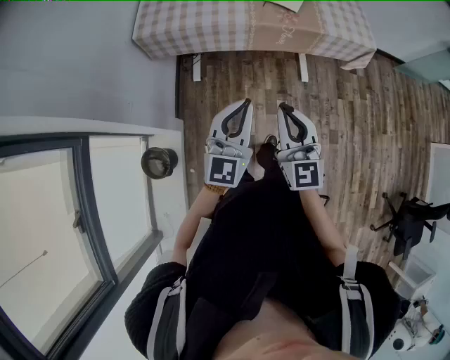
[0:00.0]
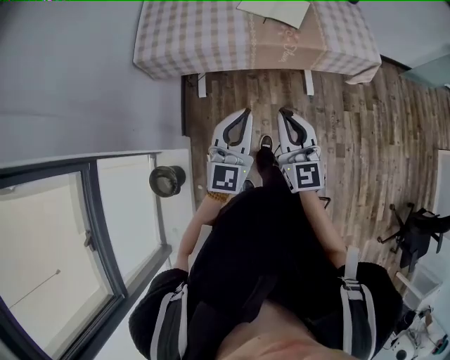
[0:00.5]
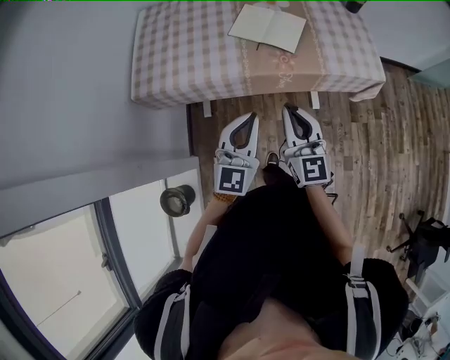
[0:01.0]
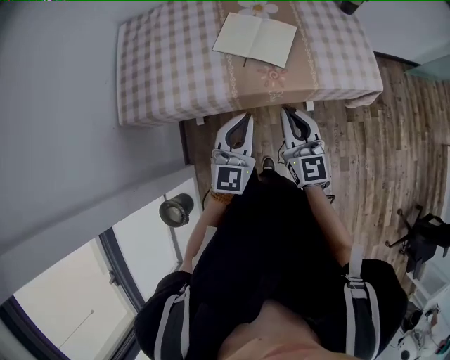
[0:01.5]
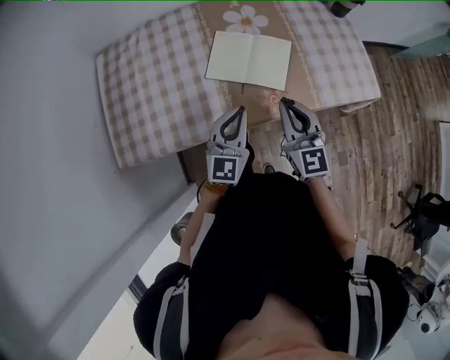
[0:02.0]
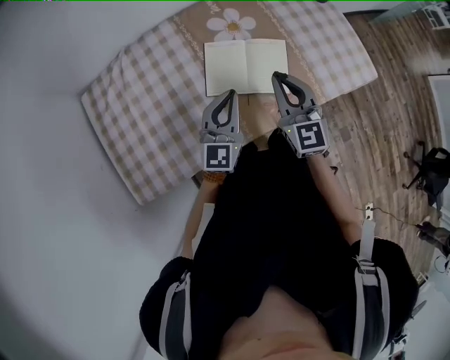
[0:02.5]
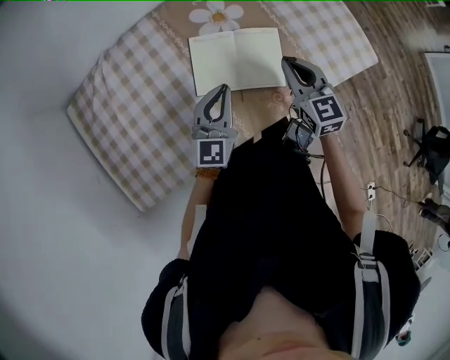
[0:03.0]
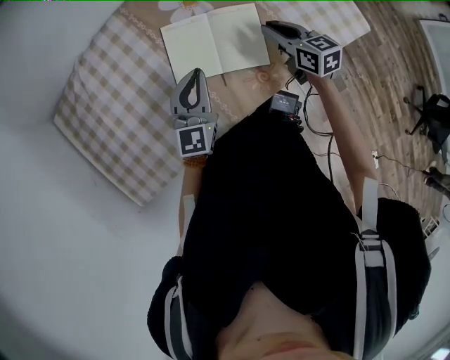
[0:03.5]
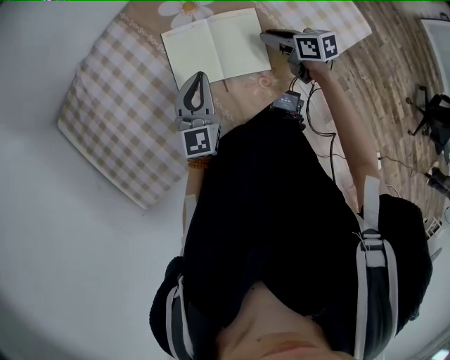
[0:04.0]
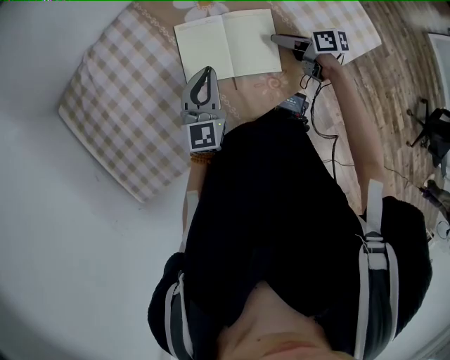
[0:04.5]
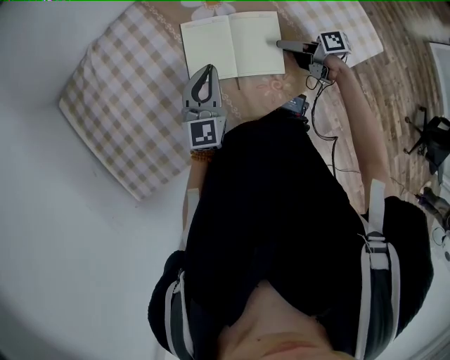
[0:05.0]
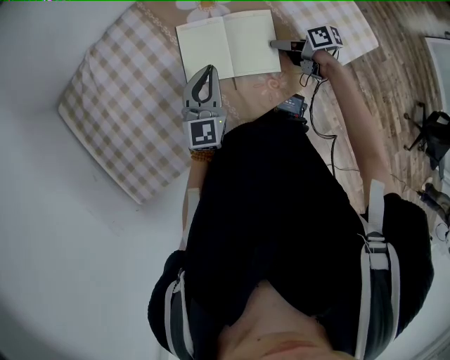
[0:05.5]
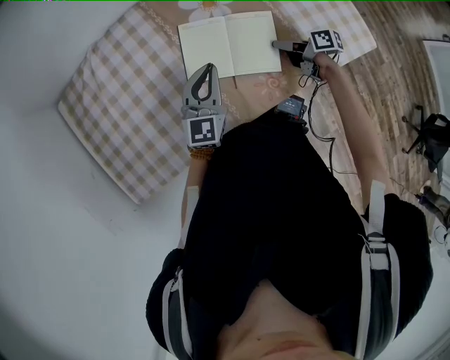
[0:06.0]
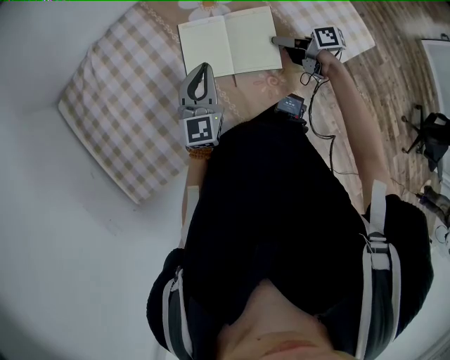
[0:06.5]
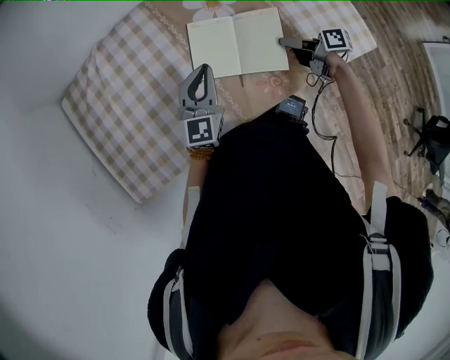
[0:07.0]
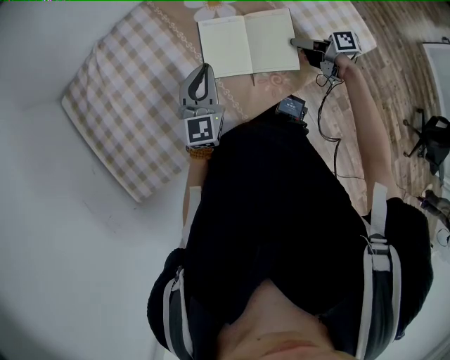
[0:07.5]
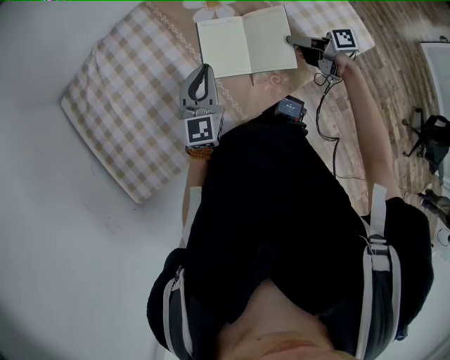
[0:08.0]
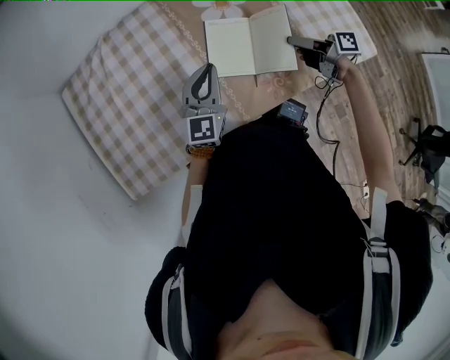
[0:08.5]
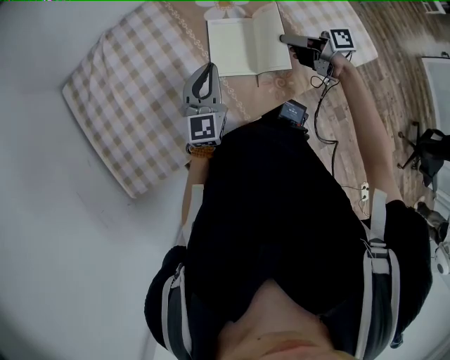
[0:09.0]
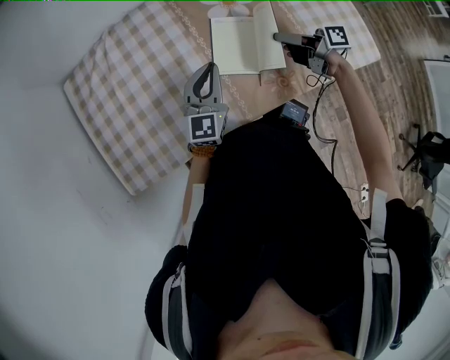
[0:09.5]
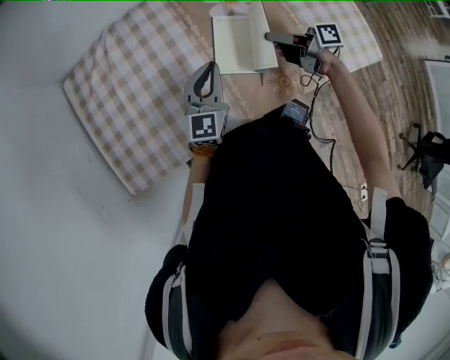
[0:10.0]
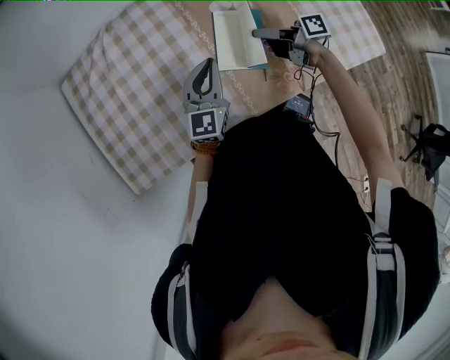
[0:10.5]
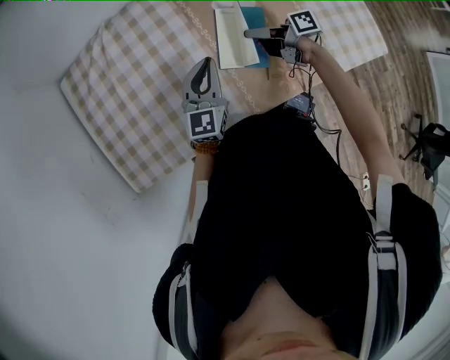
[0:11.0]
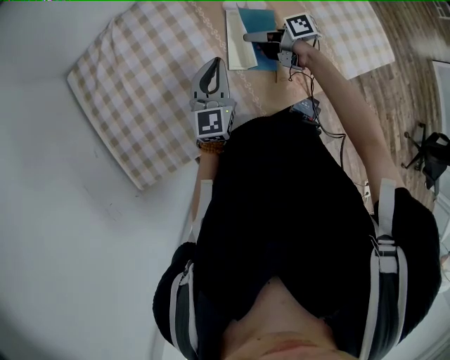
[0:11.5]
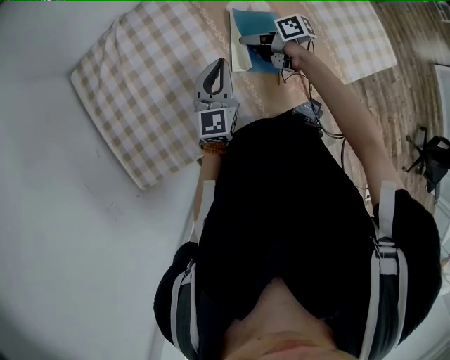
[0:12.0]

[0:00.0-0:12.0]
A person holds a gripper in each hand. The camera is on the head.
0:00.0 to 0:02.0: The pair of grippers is taken forward, about 50 cm.
0:02.0 to 0:04.0: The right gripper heads downward and forward, covering about 25 cm, rotates around the line of its fingers by about 40 degrees, clockwise from behind, and opens up, while the left gripper goes approximately 20 cm forward and downward.
0:04.0 to 0:06.0: The right gripper rotates about 30 degrees, and closes its fingers.
0:06.0 to 0:08.0: The right gripper heads upward, covering some 5 cm.
0:08.0 to 0:10.0: The right gripper is displaced to the left and forward by about 10 cm.
0:10.0 to 0:12.0: The right gripper is displaced to the left, downward and forward by some 15 cm.

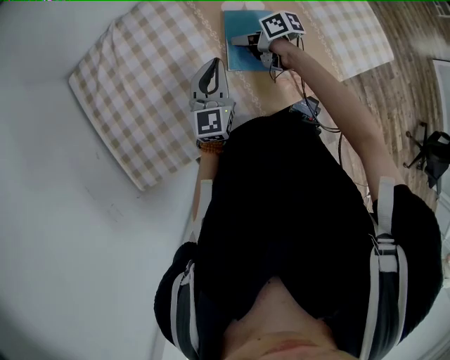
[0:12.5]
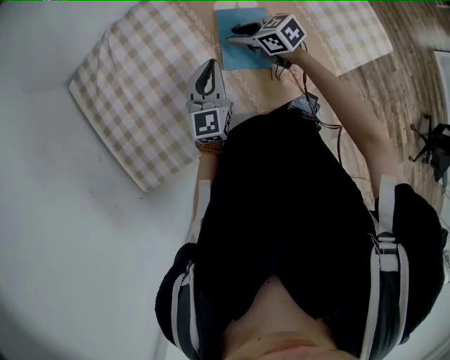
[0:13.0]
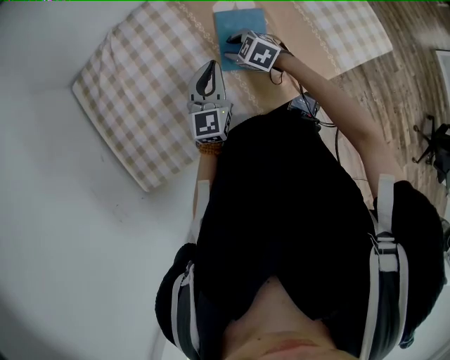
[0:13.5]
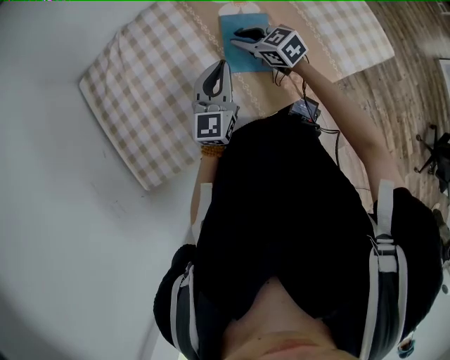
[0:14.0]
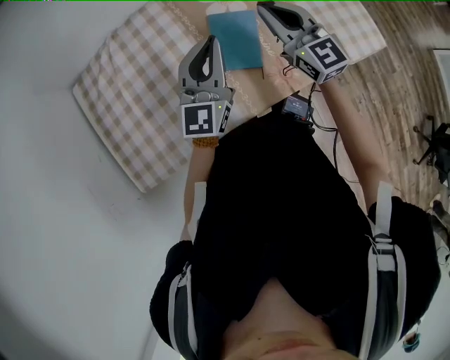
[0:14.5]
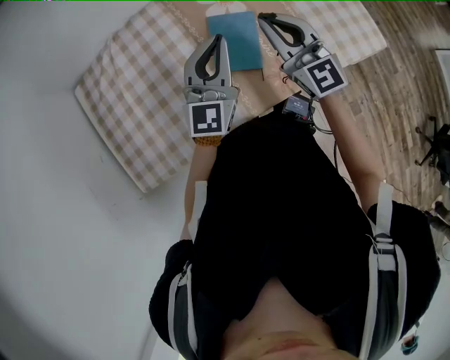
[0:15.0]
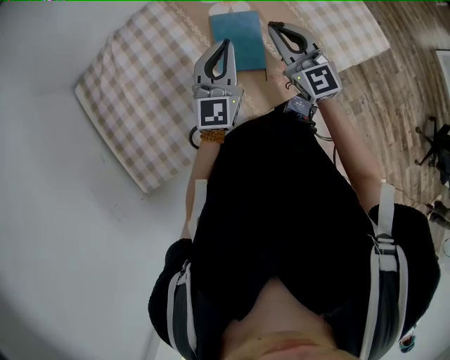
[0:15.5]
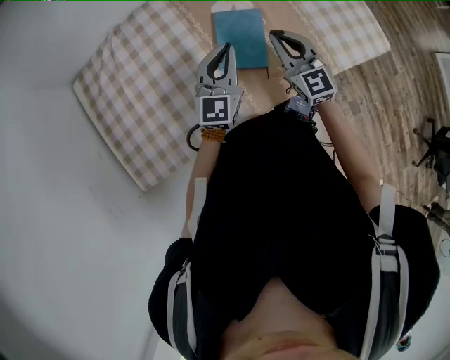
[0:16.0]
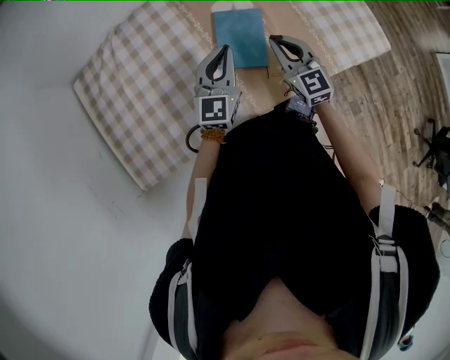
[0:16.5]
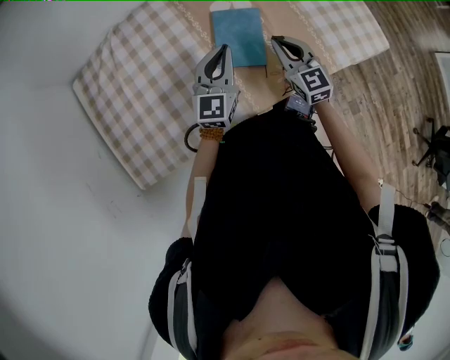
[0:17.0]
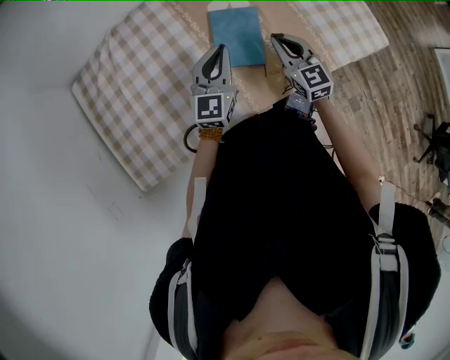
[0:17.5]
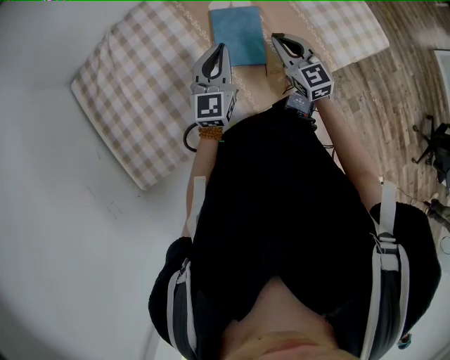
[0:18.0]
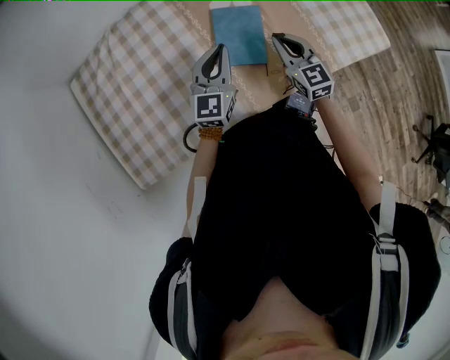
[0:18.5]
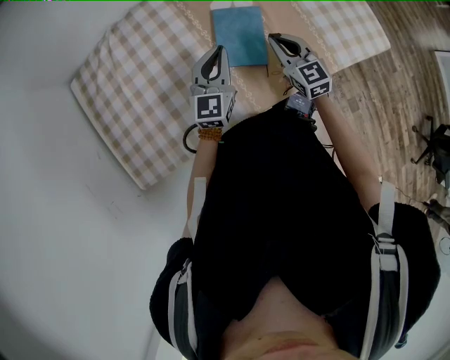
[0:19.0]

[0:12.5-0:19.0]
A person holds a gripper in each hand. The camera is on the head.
0:12.5 to 0:14.5: The left gripper travels upward and to the right by about 15 cm. The right gripper shifts approximately 25 cm upward and to the right, and changes its angle by approximately 80 degrees.
0:14.5 to 0:17.0: Both grippers move downward, about 15 cm.
0:17.0 to 0:19.0: The grippers stay close to where they were, moving slightly.

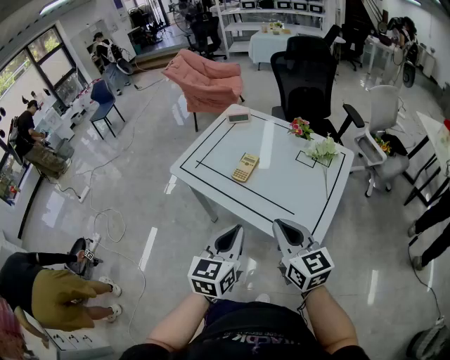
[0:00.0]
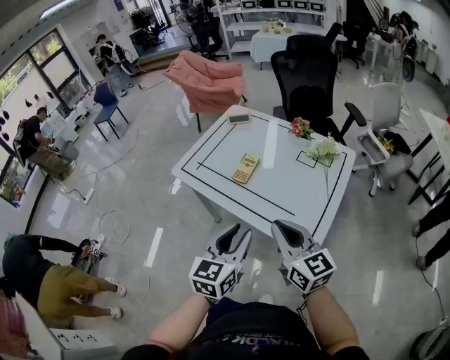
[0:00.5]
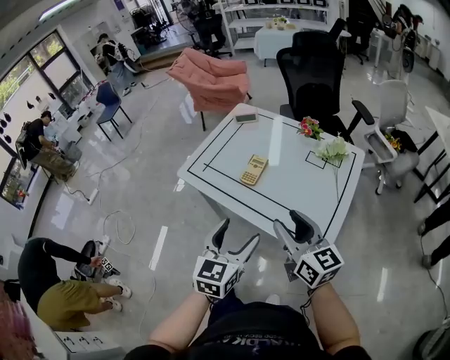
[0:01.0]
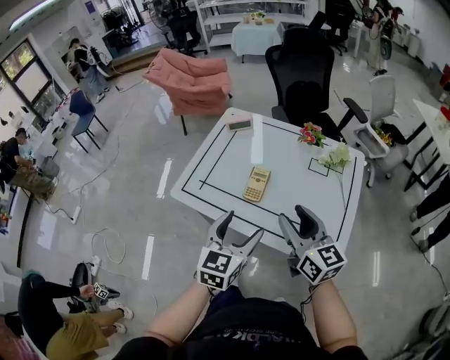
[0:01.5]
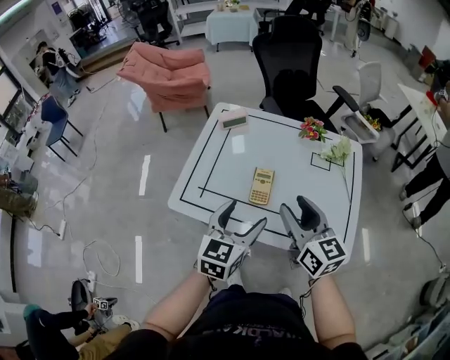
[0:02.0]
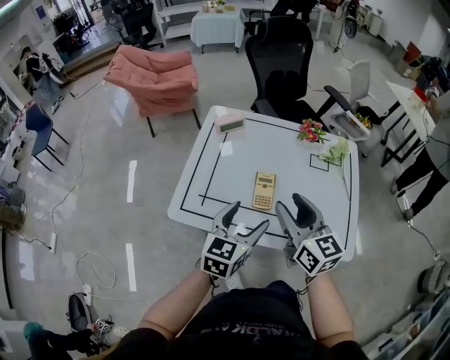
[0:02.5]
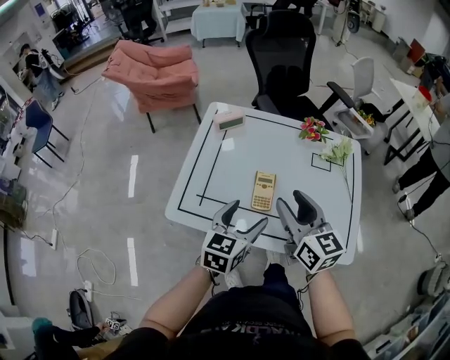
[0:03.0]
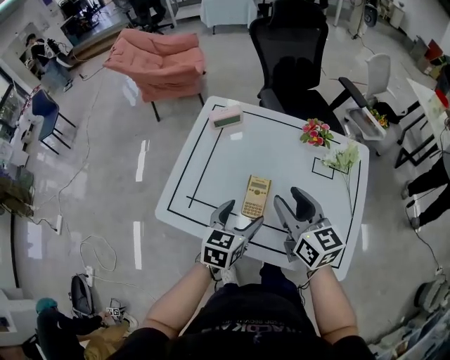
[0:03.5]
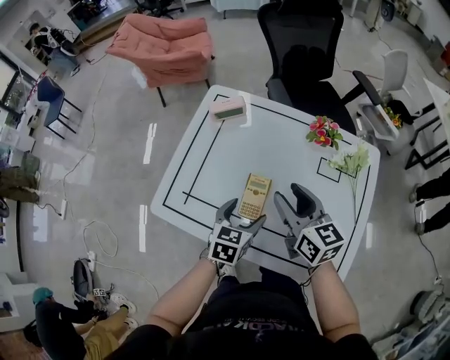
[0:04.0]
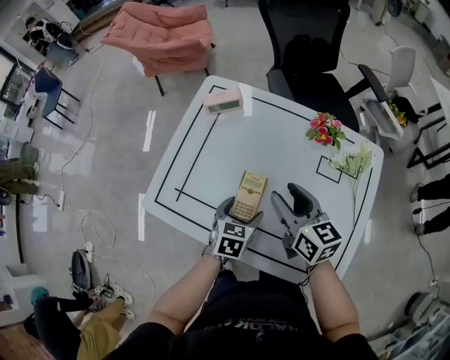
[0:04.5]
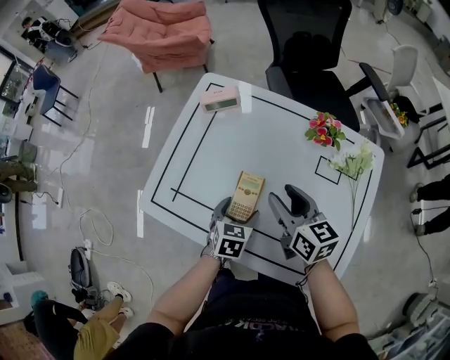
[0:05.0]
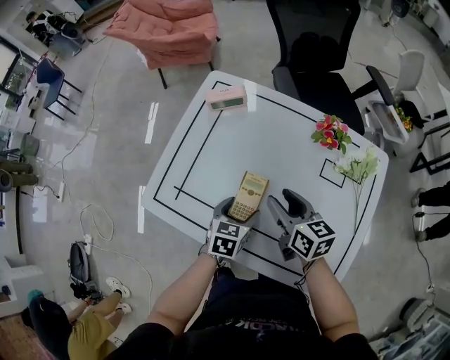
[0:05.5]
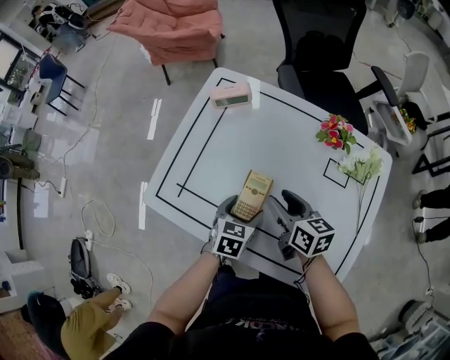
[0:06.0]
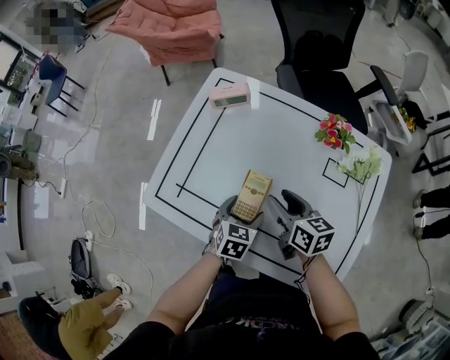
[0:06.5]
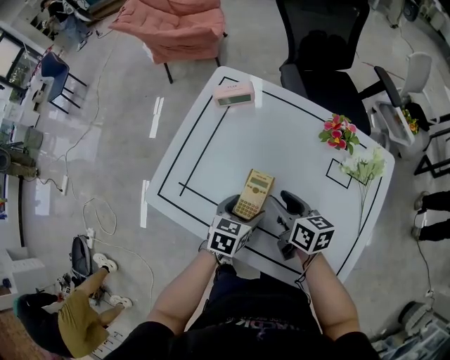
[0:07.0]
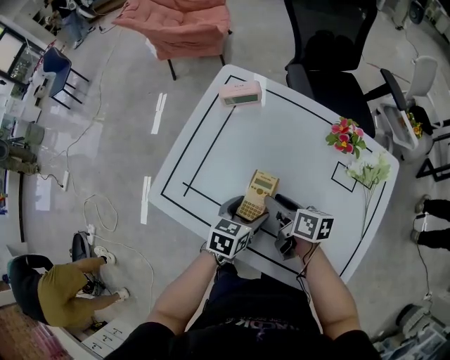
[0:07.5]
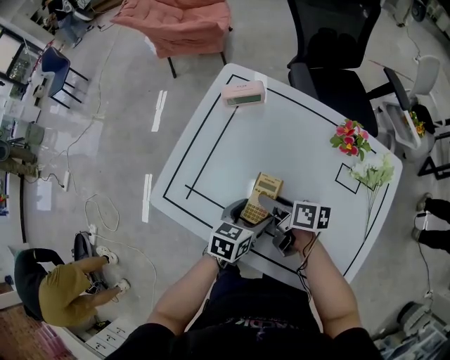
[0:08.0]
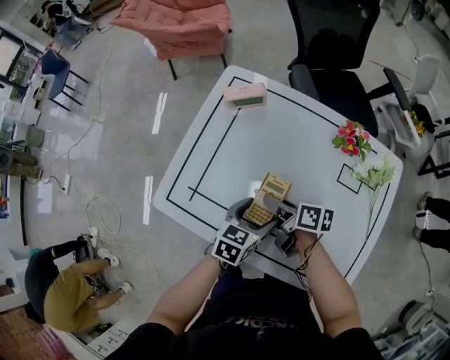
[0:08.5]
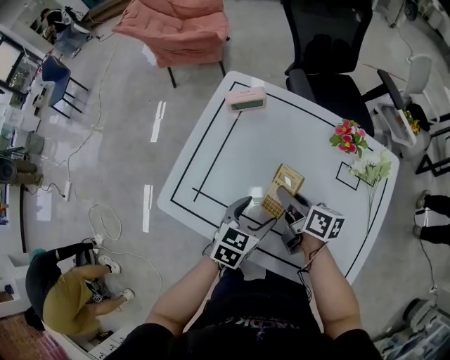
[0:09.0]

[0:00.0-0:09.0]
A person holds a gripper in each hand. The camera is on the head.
0:00.0 to 0:02.0: The two grippers go about 25 cm forward and to the left. The right gripper changes its angle by approximately 20 degrees, and opens, while the left gripper turns by some 20 degrees, and opens.
0:02.0 to 0:04.5: The right gripper is displaced forward and downward by roughly 20 cm, while the left gripper shifts some 25 cm downward and forward, and rotates approximately 30 degrees.
0:04.5 to 0:07.0: The right gripper goes approximately 10 cm downward.
0:07.0 to 0:09.0: The right gripper closes its fingers. Meanwhile the left gripper travels upward by roughly 5 cm.
